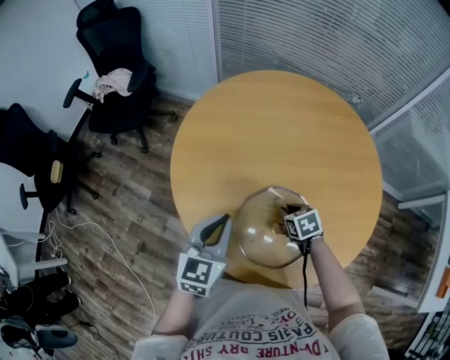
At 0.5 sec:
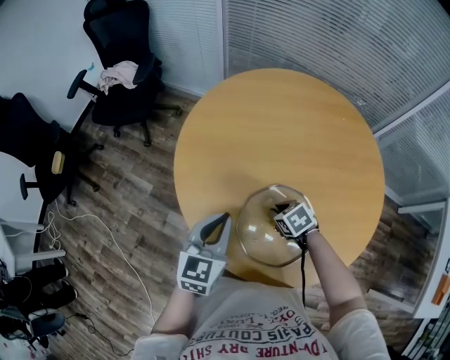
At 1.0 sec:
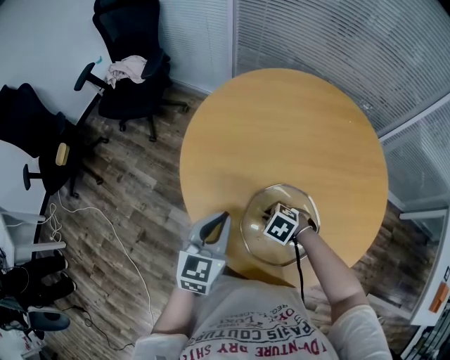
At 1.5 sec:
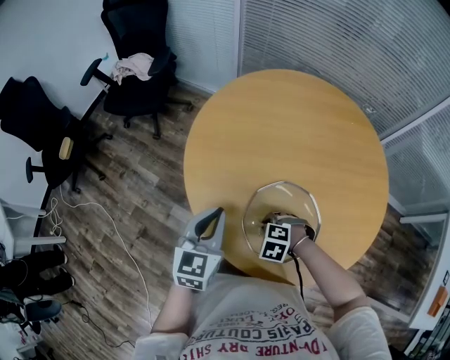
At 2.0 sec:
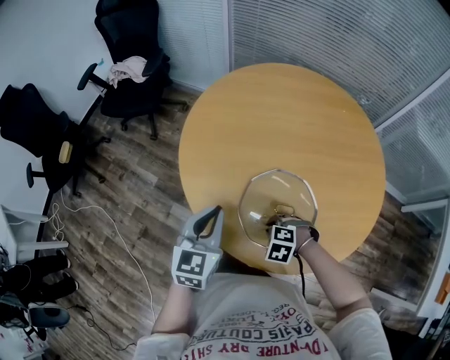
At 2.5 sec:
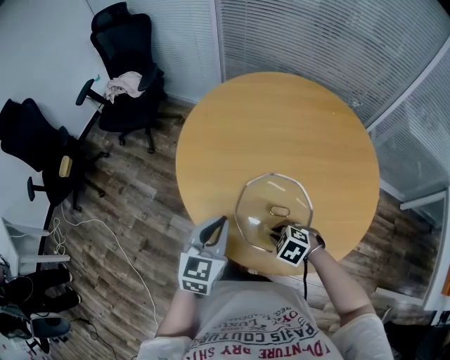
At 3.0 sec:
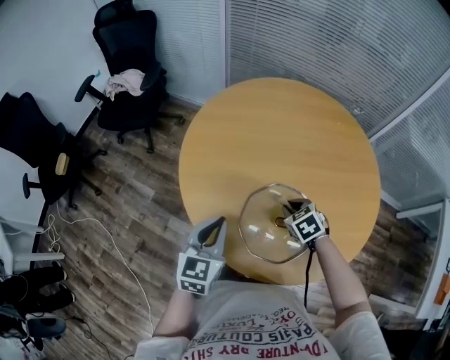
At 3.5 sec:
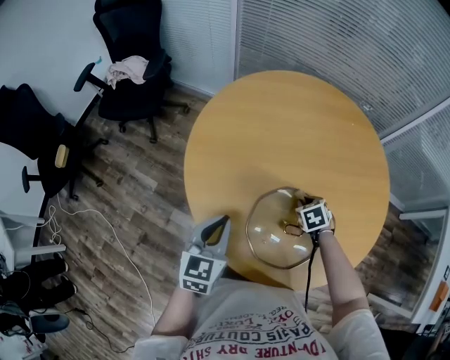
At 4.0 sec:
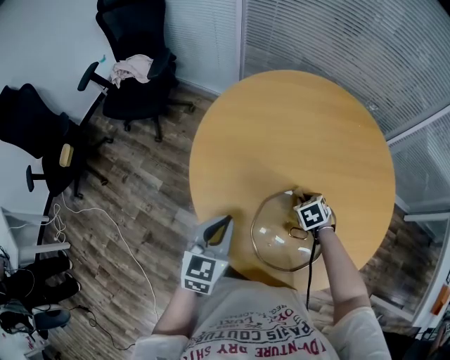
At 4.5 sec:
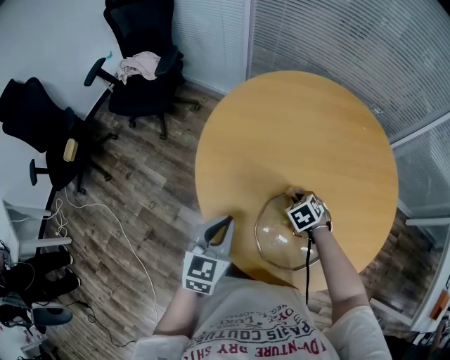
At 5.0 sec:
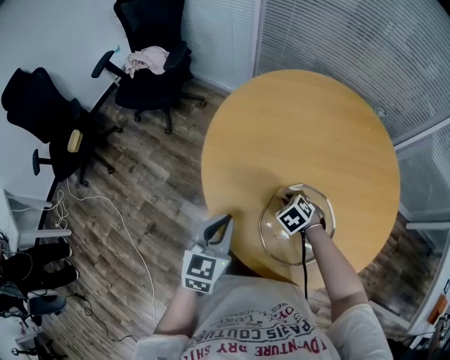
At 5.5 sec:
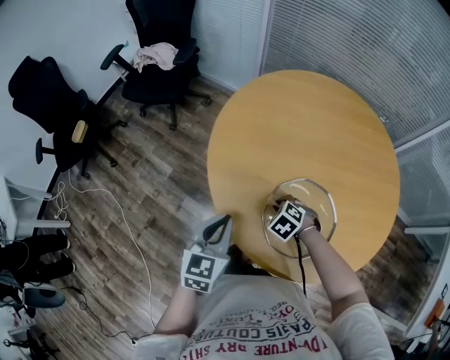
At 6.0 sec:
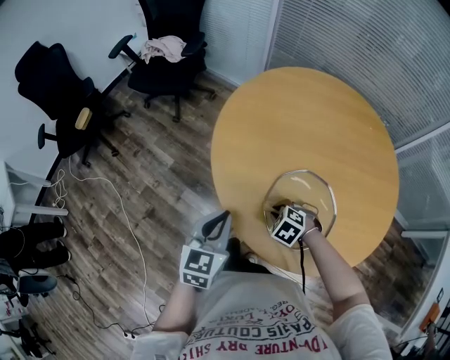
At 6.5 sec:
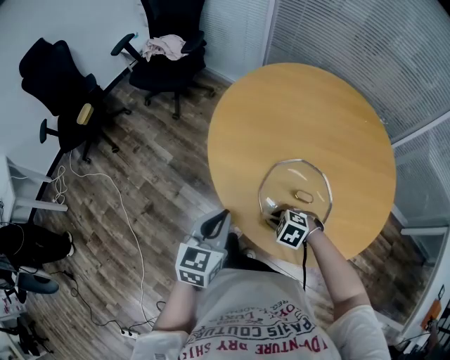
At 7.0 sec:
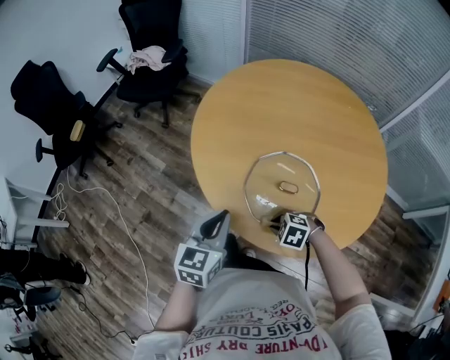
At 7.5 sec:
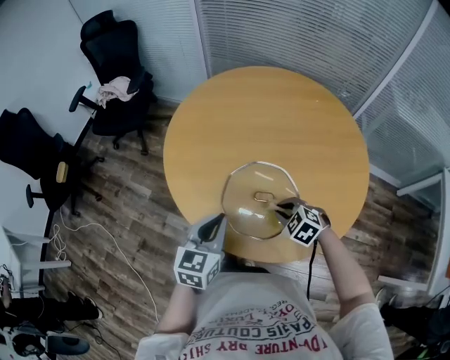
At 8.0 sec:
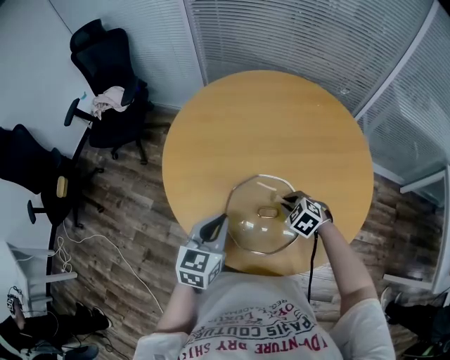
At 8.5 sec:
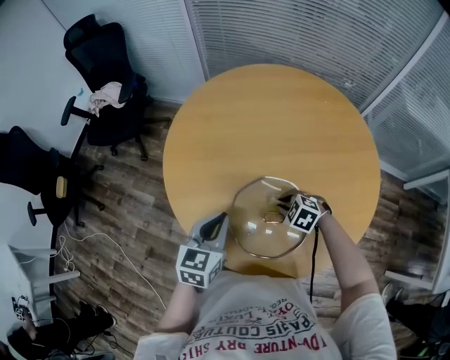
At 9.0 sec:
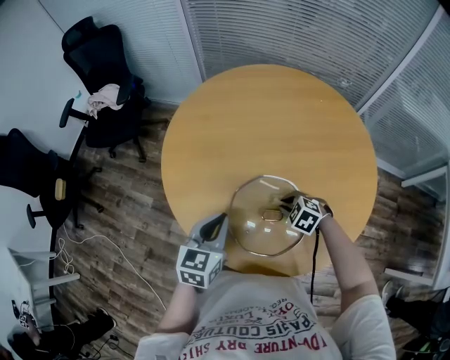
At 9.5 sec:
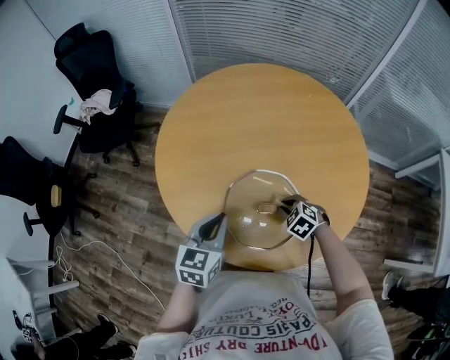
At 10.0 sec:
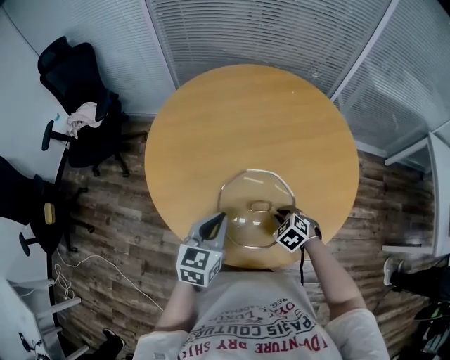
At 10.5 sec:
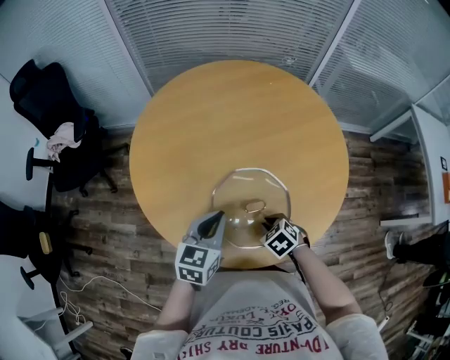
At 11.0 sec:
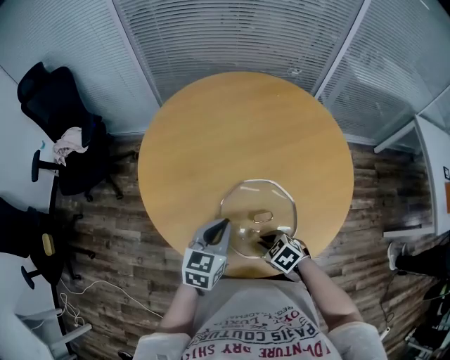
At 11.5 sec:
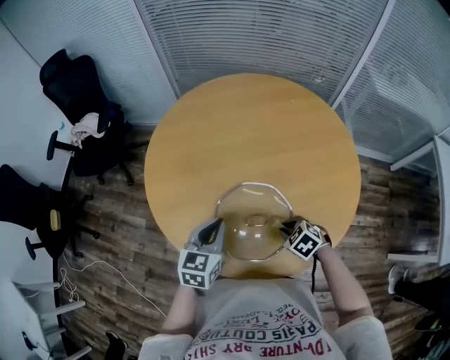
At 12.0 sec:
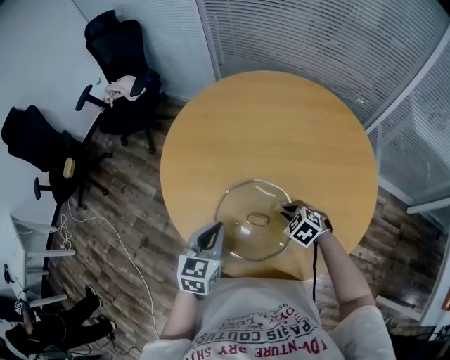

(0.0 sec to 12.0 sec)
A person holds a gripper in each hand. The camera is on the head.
0.0 sec - 2.0 sec: The left gripper ends up roughly 5 cm from where it was, while the right gripper changes place by some 15 cm, and rolls counterclockwise, seen from behind, by roughly 60 degrees.
2.0 sec - 4.0 sec: The left gripper shifts by about 10 cm. The right gripper goes upward and returns, approximately 5 cm each way, and rolls clockwise, seen from behind, by some 50 degrees.
4.0 sec - 6.0 sec: The left gripper moves roughly 15 cm, while the right gripper moves about 20 cm, and rotates around the line of its fingers by approximately 40 degrees, counterclockwise from behind.
6.0 sec - 8.0 sec: The right gripper changes place by approximately 20 cm, and turns by roughly 20 degrees. The left gripper shifts by roughly 15 cm.
8.0 sec - 10.0 sec: The right gripper ends up approximately 5 cm from where it was.
10.0 sec - 12.0 sec: The right gripper shifts by roughly 10 cm, and swivels some 20 degrees, while the left gripper swivels some 20 degrees.

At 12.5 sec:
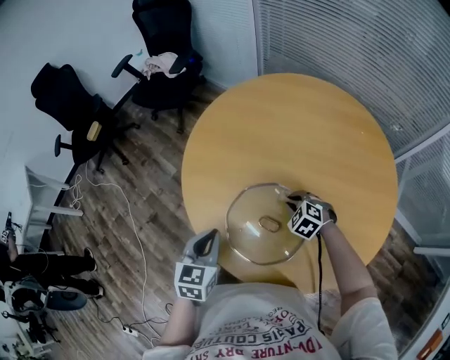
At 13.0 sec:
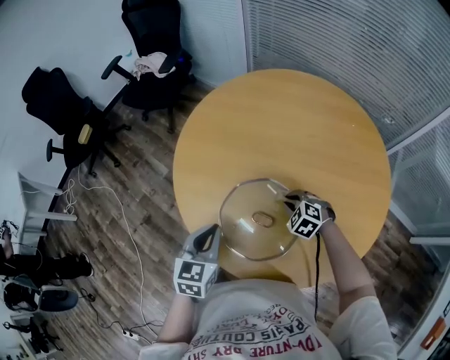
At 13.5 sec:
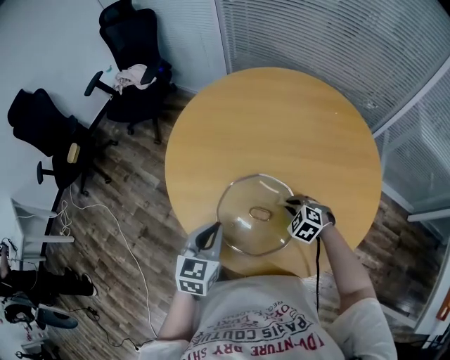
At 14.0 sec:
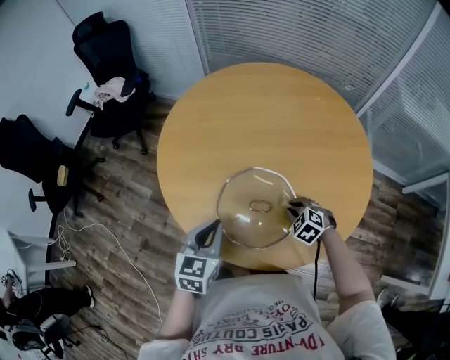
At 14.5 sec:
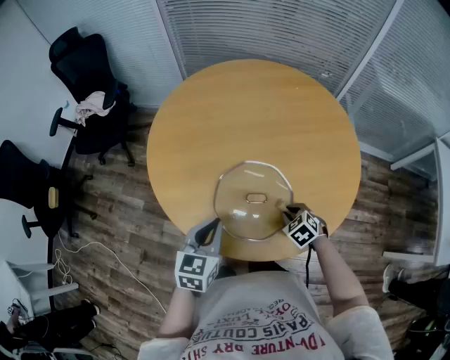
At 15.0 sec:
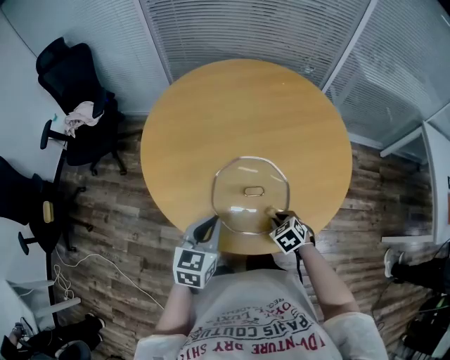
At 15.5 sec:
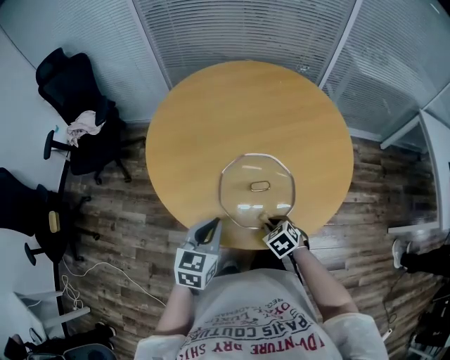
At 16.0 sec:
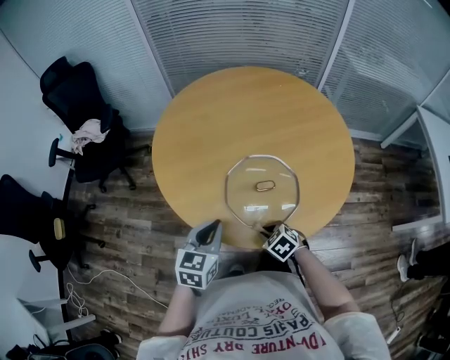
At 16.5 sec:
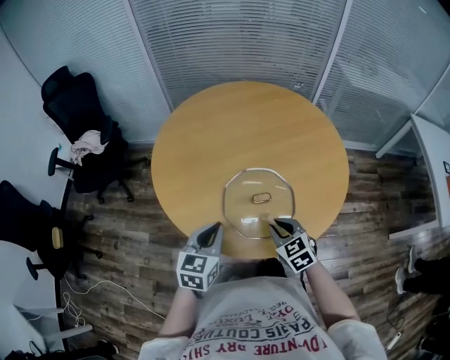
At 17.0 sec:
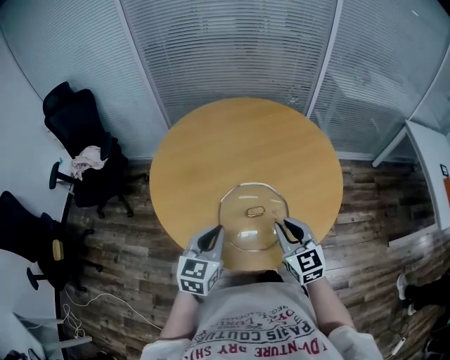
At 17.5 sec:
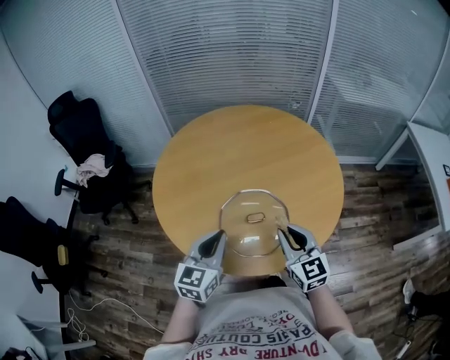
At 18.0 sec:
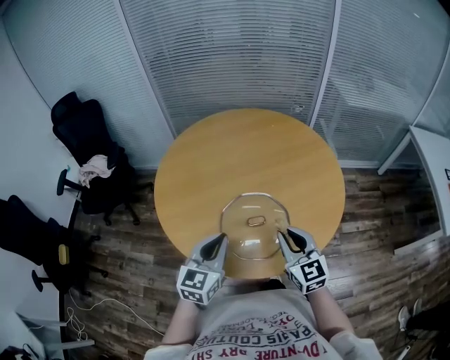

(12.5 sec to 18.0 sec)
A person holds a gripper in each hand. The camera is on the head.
12.5 sec - 14.5 sec: The left gripper turns by about 30 degrees. The right gripper shifts by roughly 15 cm, and turns by approximately 40 degrees.
14.5 sec - 16.0 sec: The left gripper heads to the left, covering roughly 5 cm; the right gripper goes roughly 20 cm to the left and backward.
16.0 sec - 18.0 sec: The left gripper moves upward and to the right, some 10 cm; the right gripper goes some 25 cm upward, and tips its fingers upward by roughly 50 degrees.

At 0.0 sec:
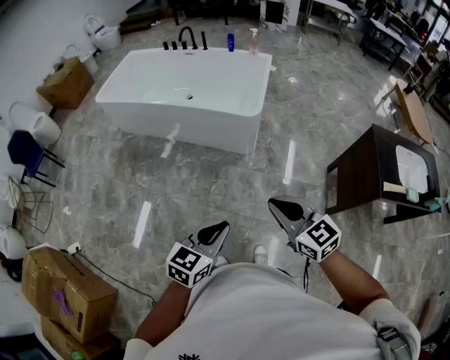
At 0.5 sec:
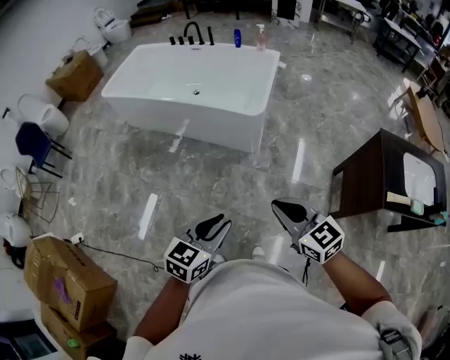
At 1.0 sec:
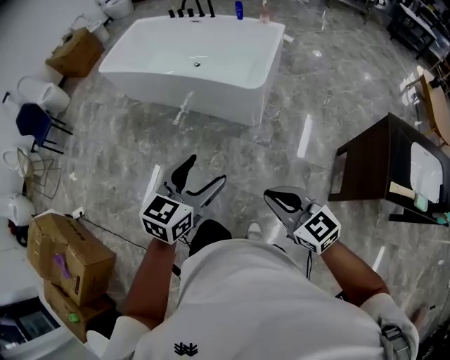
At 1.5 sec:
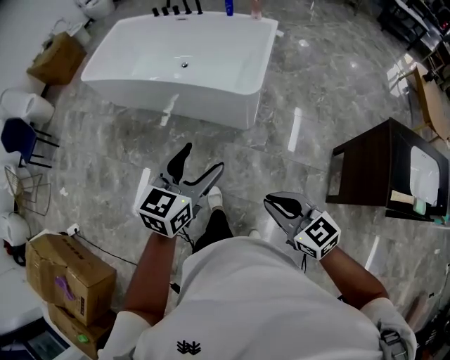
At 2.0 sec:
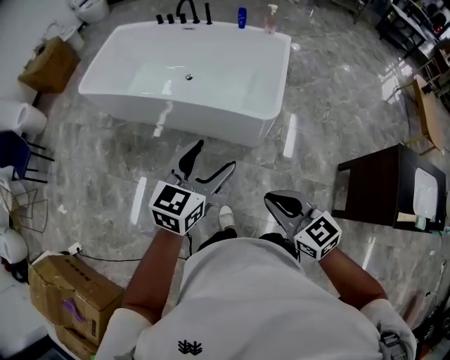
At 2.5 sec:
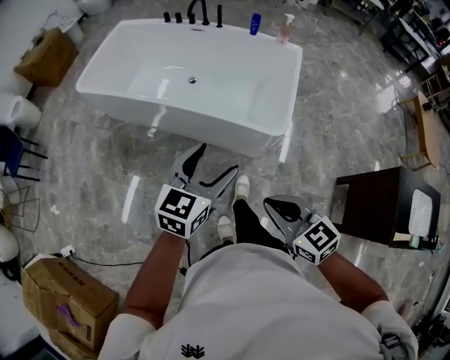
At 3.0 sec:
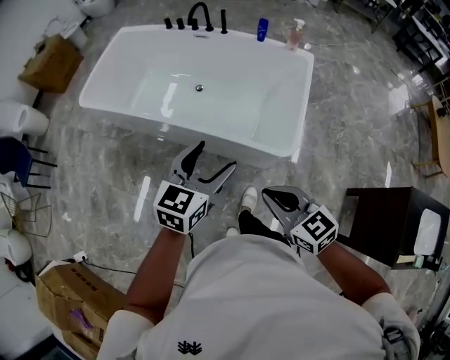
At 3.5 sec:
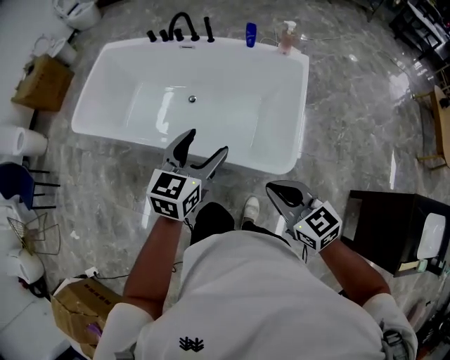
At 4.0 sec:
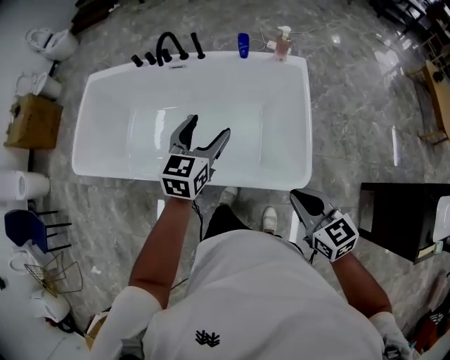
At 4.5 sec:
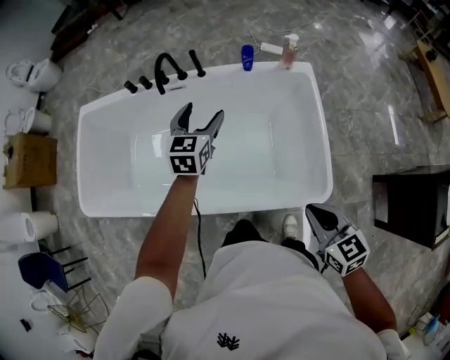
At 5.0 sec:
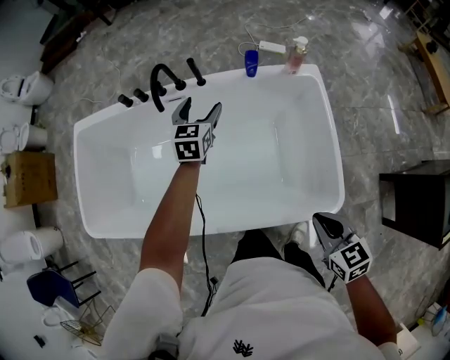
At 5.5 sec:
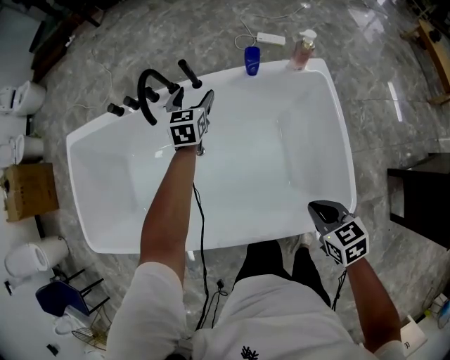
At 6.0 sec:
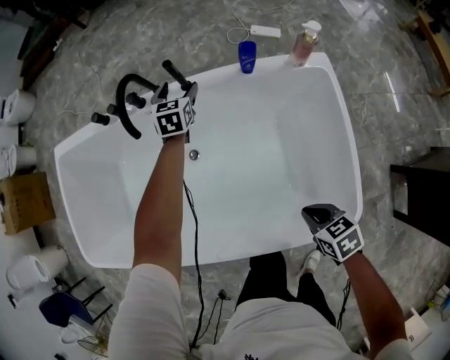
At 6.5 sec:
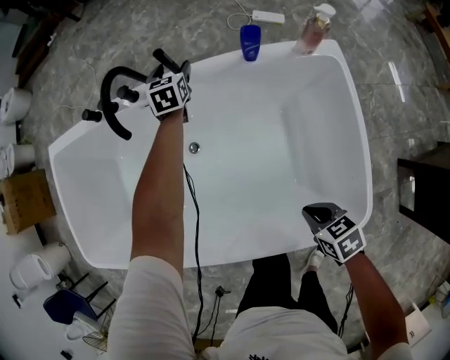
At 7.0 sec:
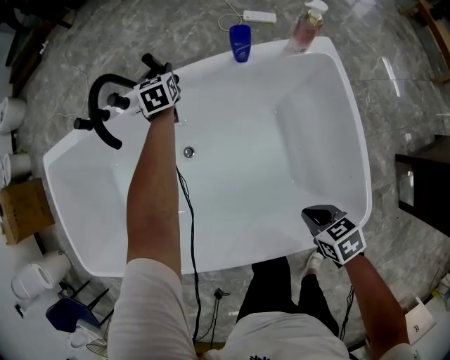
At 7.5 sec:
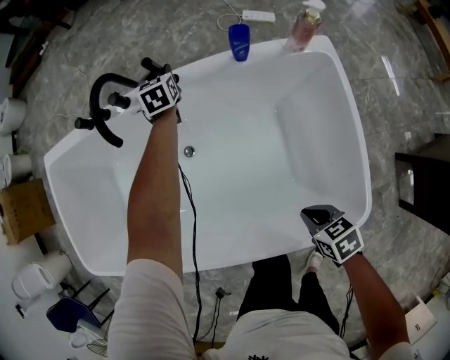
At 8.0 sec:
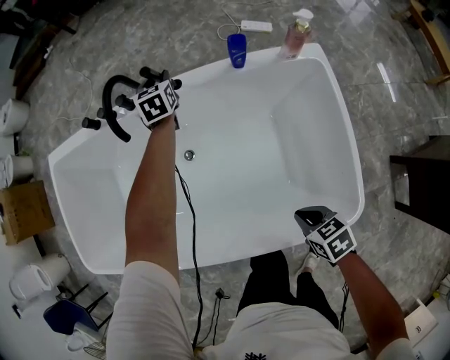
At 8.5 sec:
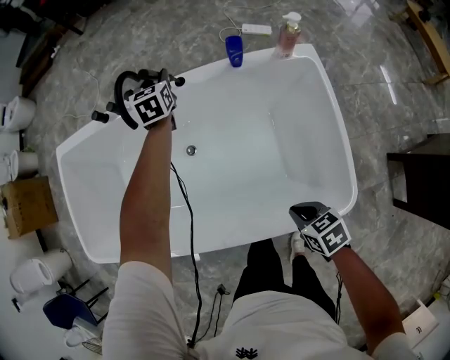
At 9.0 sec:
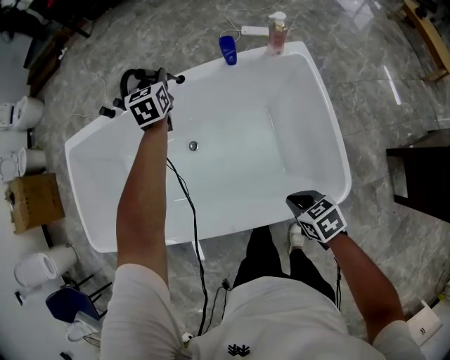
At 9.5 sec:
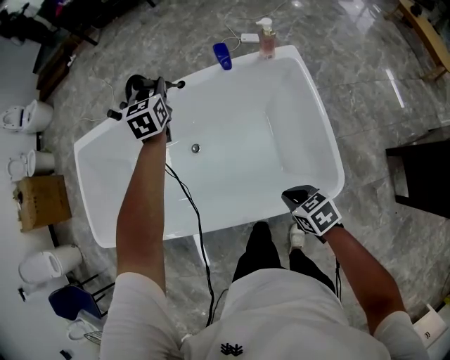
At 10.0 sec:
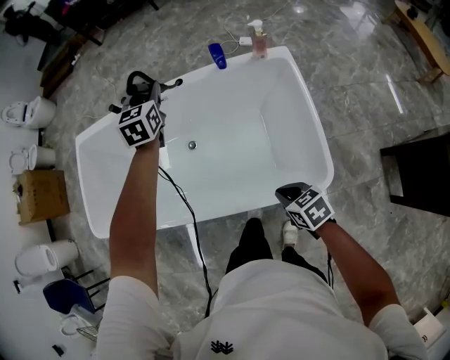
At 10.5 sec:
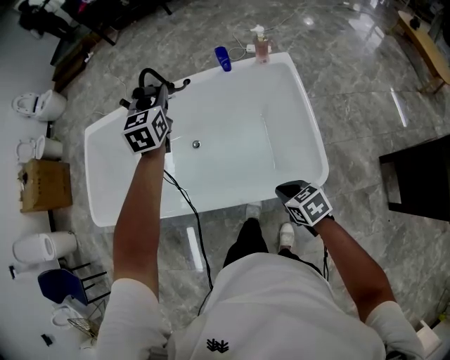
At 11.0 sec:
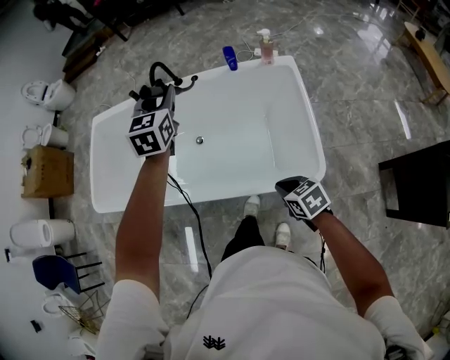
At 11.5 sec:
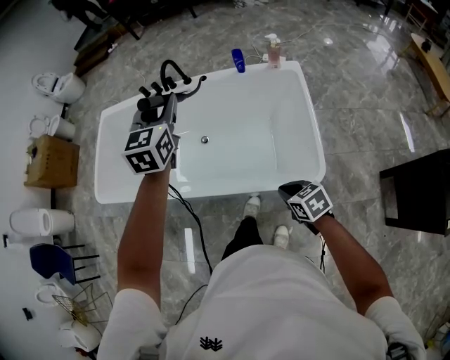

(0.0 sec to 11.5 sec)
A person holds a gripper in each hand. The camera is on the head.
0.0 sec - 2.0 sec: The left gripper moves forward, some 40 cm, and opens up. The right gripper is displaced forward by some 25 cm.
2.0 sec - 4.0 sec: The two grippers travel together, forward, roughly 50 cm. The right gripper swivels about 20 degrees.
4.0 sec - 6.0 sec: The right gripper goes roughly 35 cm downward and forward, and tips its fingers downward by roughly 30 degrees; the left gripper goes about 60 cm forward and downward.
6.0 sec - 7.5 sec: The left gripper moves forward and downward, roughly 10 cm, and closes. Meanwhile the right gripper heads downward, covering about 5 cm.
7.5 sec - 9.5 sec: The right gripper goes about 15 cm upward and backward. The left gripper heads upward and backward, covering about 35 cm.
9.5 sec - 11.5 sec: The right gripper travels backward and upward by roughly 15 cm; the left gripper moves backward and upward, about 35 cm.
